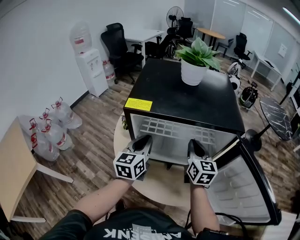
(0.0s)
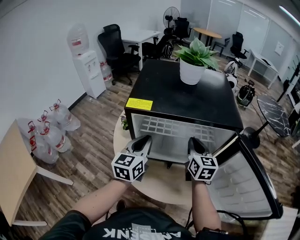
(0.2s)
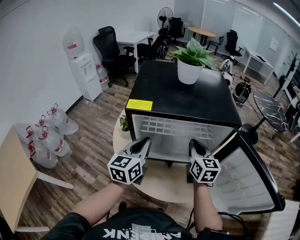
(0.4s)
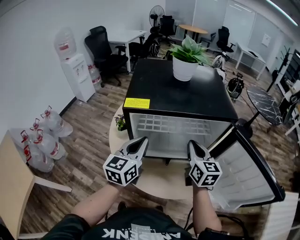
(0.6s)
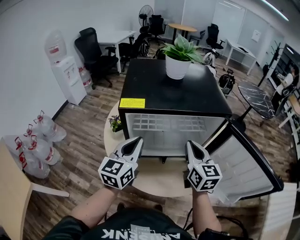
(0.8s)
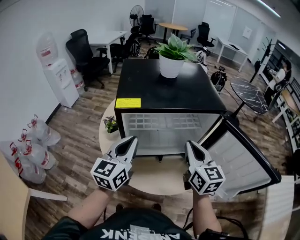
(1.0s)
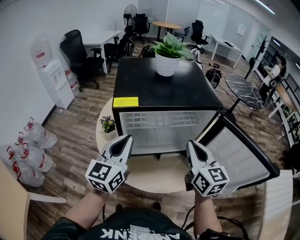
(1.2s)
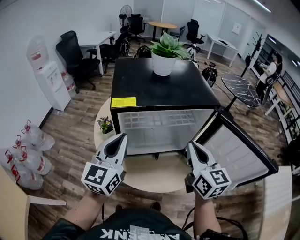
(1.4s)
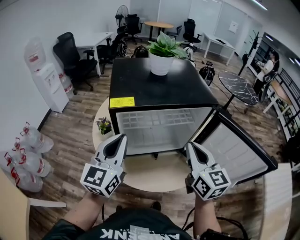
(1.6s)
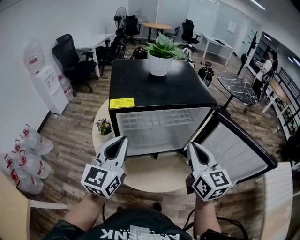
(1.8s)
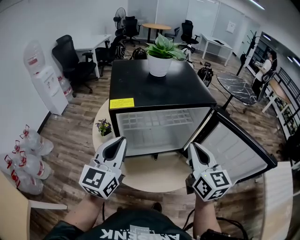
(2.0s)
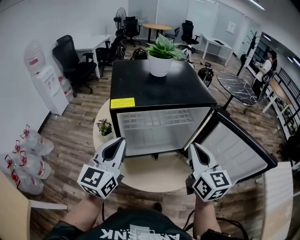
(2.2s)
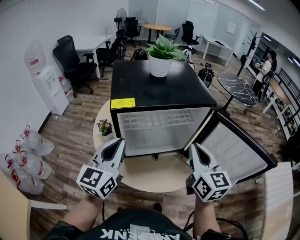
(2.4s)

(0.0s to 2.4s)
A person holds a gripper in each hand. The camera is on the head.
0.0s - 1.2s: The left gripper is displaced upward and backward by some 10 cm, and swivels some 20 degrees, while the right gripper is displaced backward and upward by approximately 15 cm.
1.2s - 2.4s: The grippers move only a little.

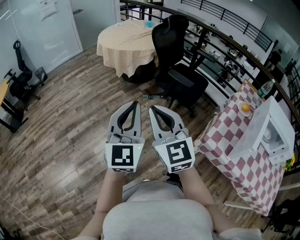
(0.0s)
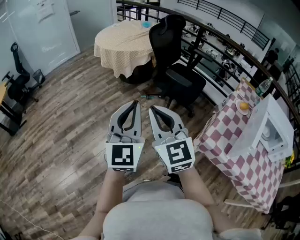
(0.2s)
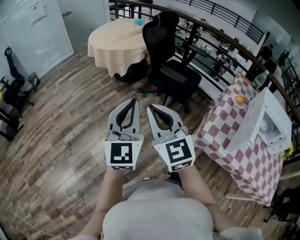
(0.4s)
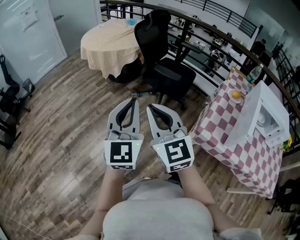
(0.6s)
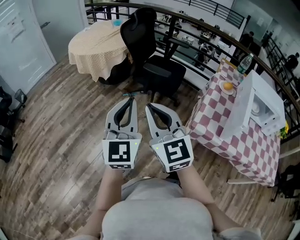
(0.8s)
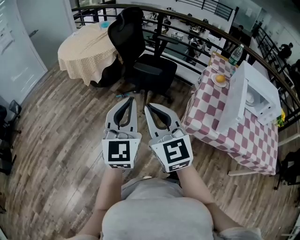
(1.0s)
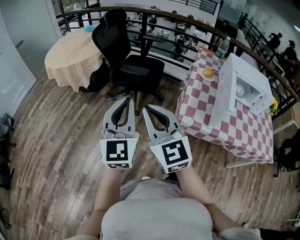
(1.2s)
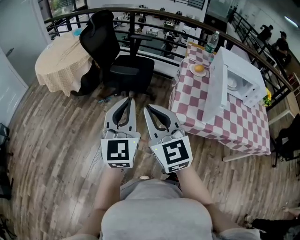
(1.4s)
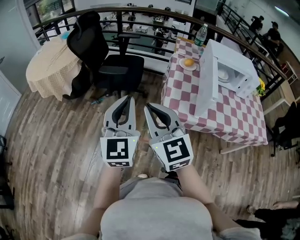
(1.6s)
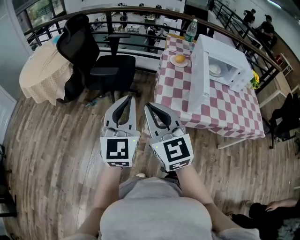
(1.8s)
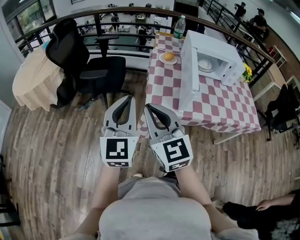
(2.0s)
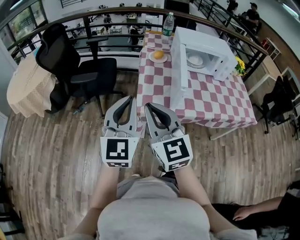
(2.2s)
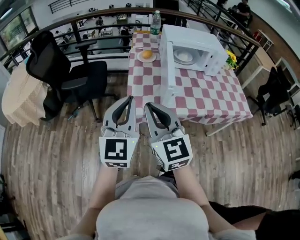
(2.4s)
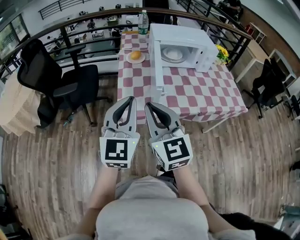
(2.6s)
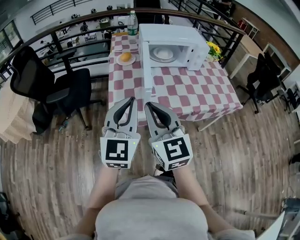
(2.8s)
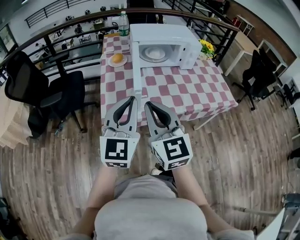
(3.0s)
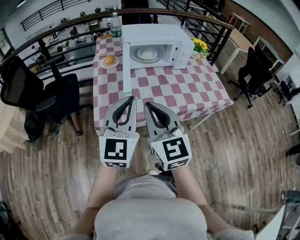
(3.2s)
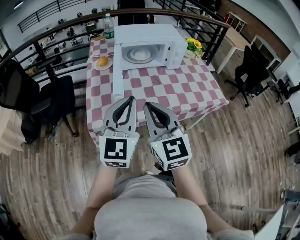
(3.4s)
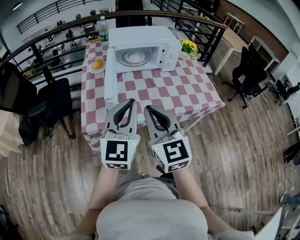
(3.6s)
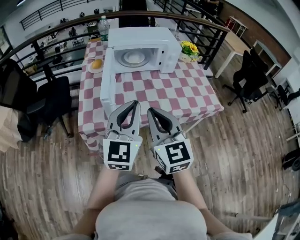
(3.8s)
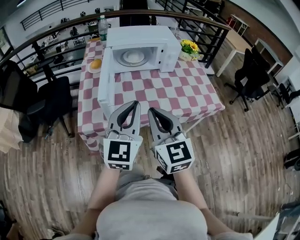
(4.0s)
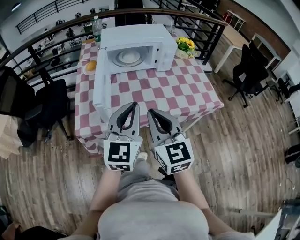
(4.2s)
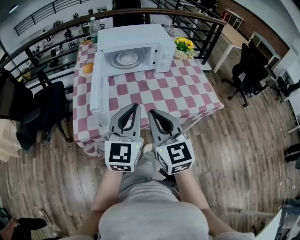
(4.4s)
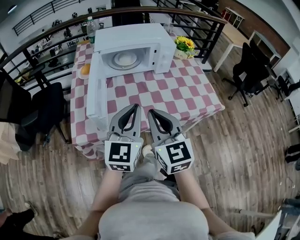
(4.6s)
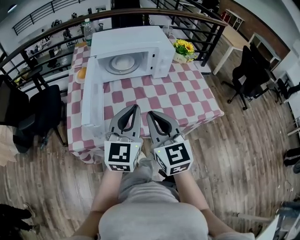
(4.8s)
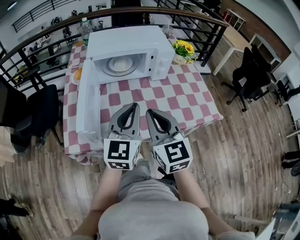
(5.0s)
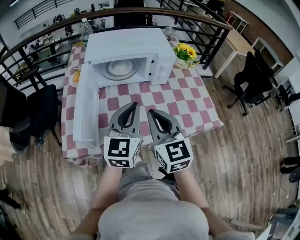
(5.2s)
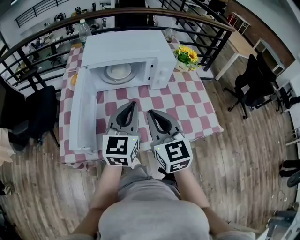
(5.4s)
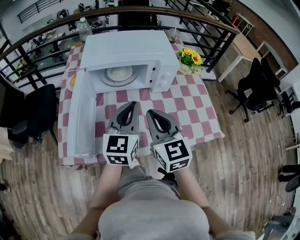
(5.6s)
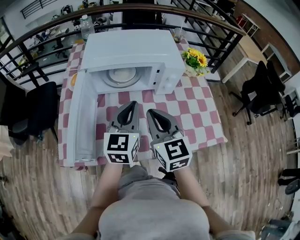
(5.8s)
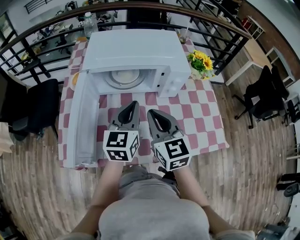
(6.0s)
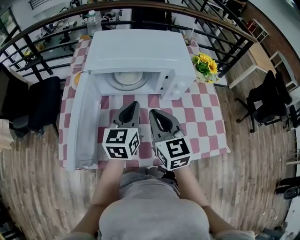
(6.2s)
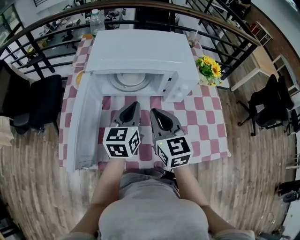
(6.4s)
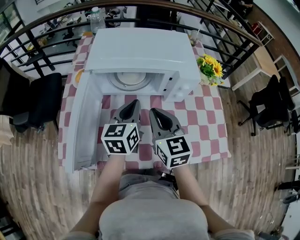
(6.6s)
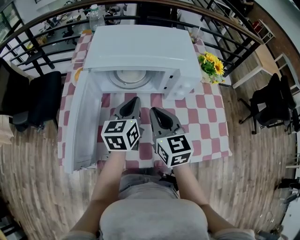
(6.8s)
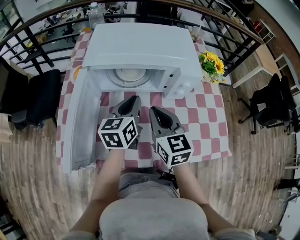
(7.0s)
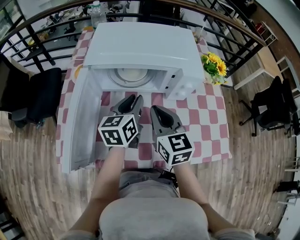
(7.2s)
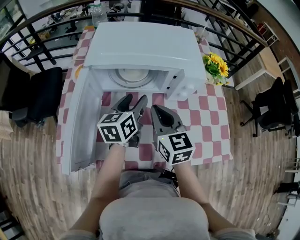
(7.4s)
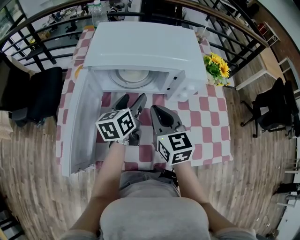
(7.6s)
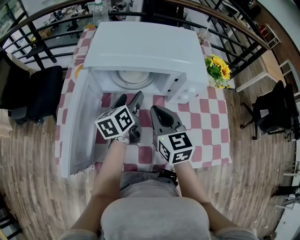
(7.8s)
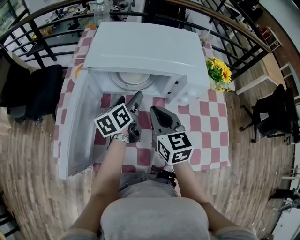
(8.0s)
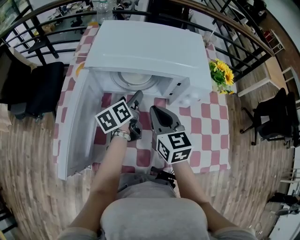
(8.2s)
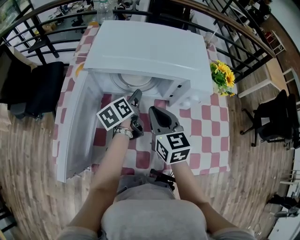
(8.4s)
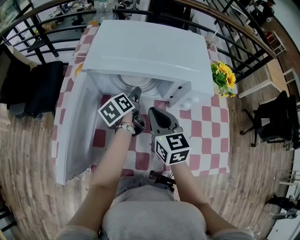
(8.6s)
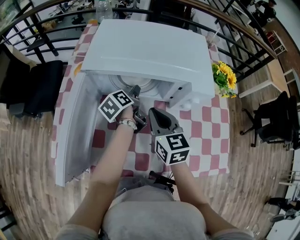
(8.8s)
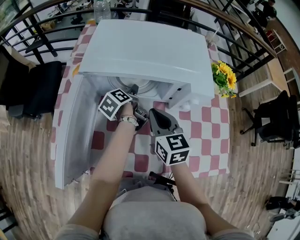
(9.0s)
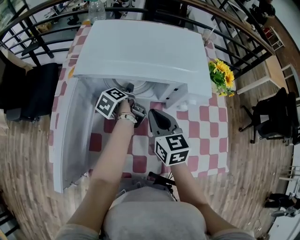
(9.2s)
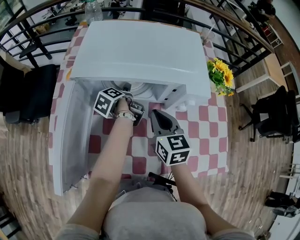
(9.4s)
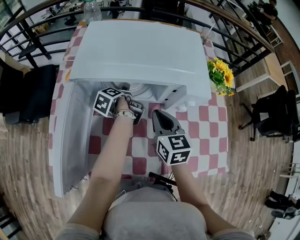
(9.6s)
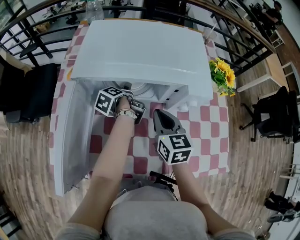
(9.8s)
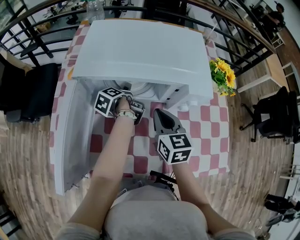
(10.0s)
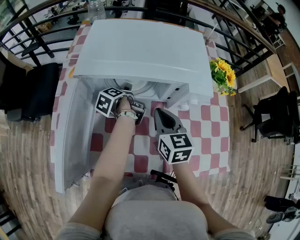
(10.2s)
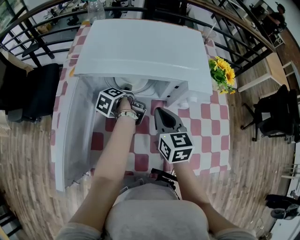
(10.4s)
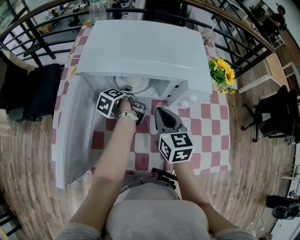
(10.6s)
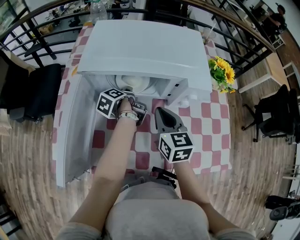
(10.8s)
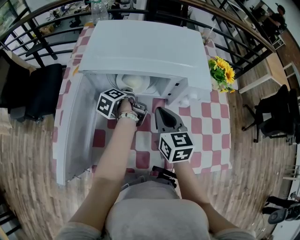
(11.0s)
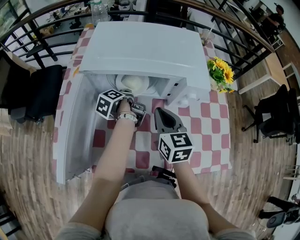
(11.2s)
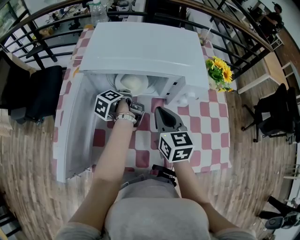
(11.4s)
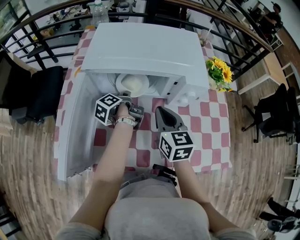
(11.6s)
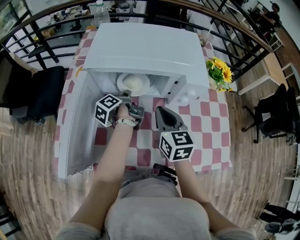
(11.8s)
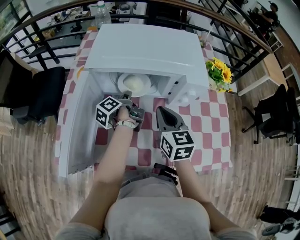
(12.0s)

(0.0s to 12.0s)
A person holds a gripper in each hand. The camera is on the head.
0.0s - 1.6s: The right gripper ends up some 20 cm from where it was, and turns by about 30 degrees. The left gripper changes place by roughly 20 cm, and rotates roughly 30 degrees.
1.6s - 3.0s: The right gripper moves some 30 cm, and turns by approximately 30 degrees. Meanwhile the left gripper moves approximately 30 cm, and changes its angle by approximately 30 degrees.
3.0s - 4.4s: The grippers both shift to the right by about 20 cm.
4.4s - 6.0s: The grippers both shift forward by some 25 cm.
6.0s - 7.6s: The grippers both shift forward and downward by about 10 cm. The left gripper rotates about 30 degrees, and opens up.
7.6s - 9.0s: The right gripper ends up approximately 5 cm from where it was. Meanwhile the left gripper travels downward and forward by about 15 cm, and twists about 40 degrees counterclockwise, seen from behind.
9.0s - 10.4s: The grippers stay close to where they were, moving slightly.
10.4s - 12.0s: The left gripper shifts by roughly 5 cm, and closes.

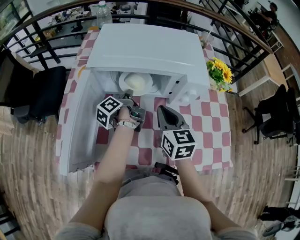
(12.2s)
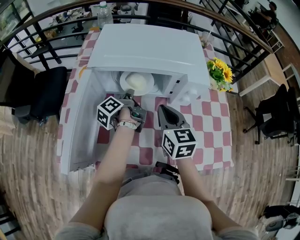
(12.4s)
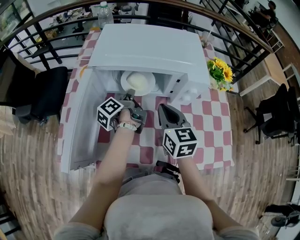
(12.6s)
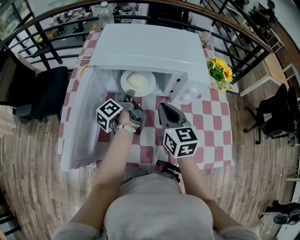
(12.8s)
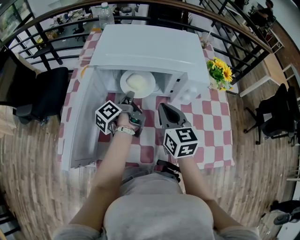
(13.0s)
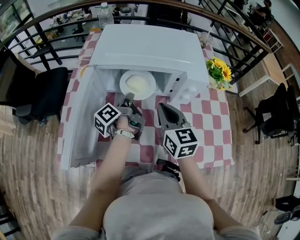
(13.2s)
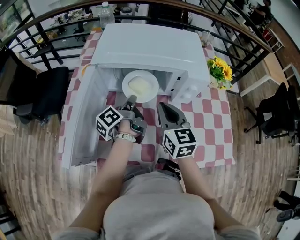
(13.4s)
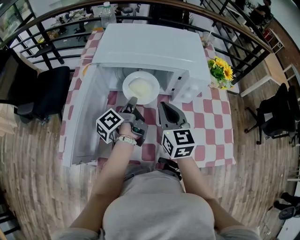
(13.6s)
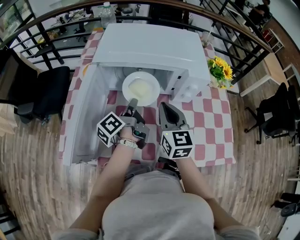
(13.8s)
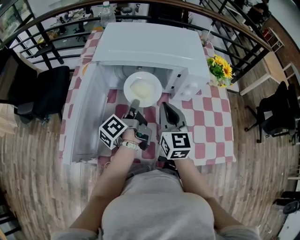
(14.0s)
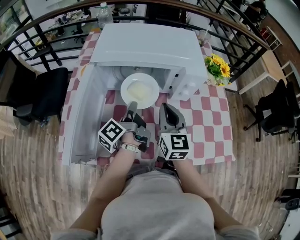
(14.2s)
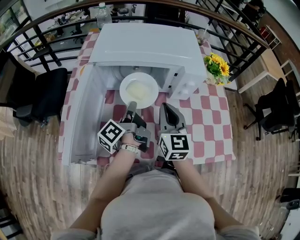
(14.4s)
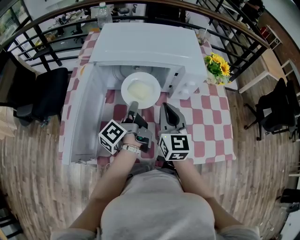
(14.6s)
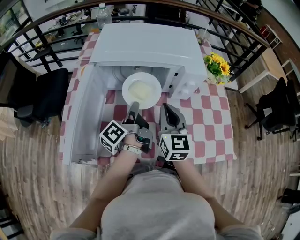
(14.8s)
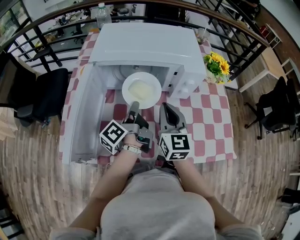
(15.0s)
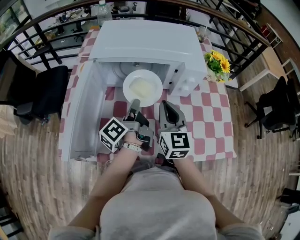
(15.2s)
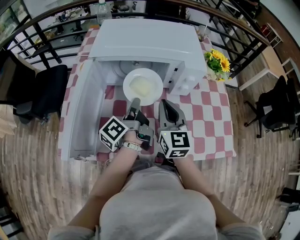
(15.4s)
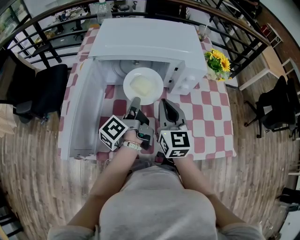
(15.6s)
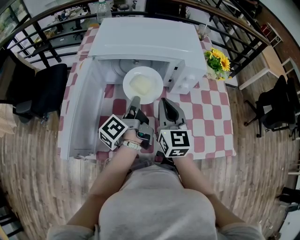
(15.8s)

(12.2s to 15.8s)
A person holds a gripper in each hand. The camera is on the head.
12.2s - 14.0s: The left gripper heads backward, covering roughly 10 cm.
14.0s - 15.8s: There are only small adjustments of the grippers.

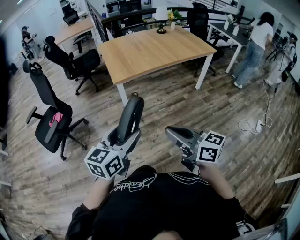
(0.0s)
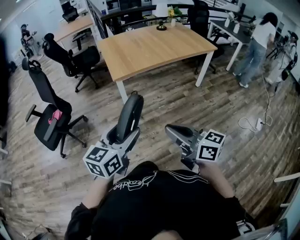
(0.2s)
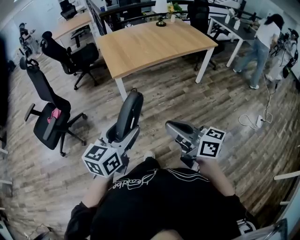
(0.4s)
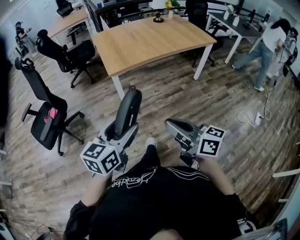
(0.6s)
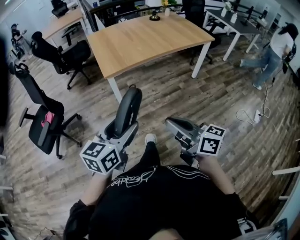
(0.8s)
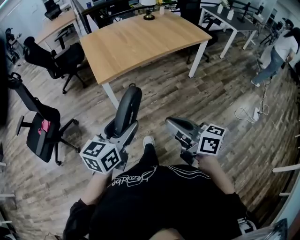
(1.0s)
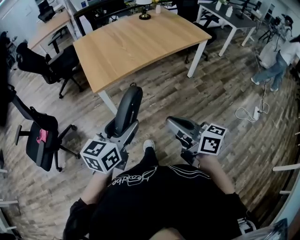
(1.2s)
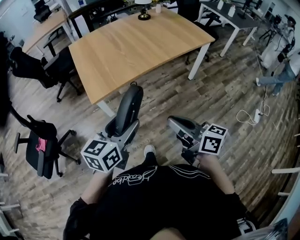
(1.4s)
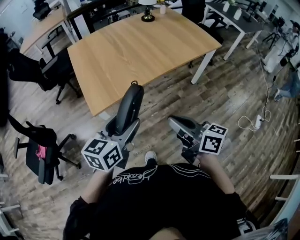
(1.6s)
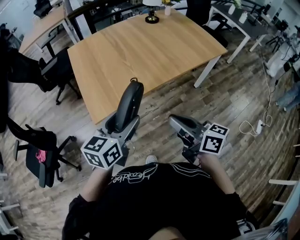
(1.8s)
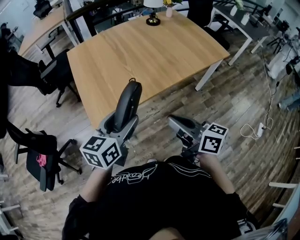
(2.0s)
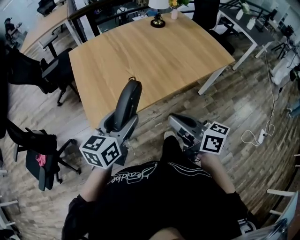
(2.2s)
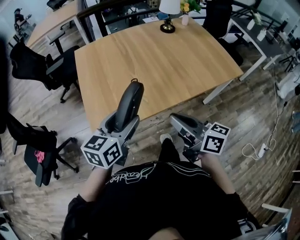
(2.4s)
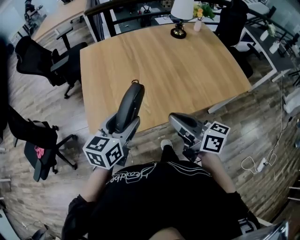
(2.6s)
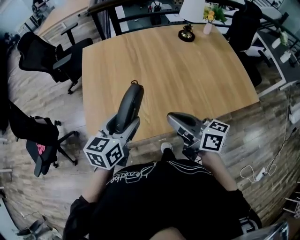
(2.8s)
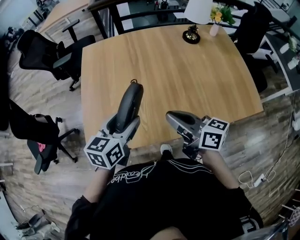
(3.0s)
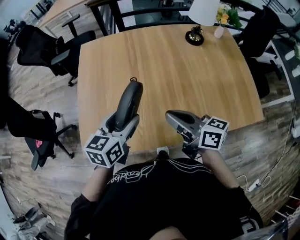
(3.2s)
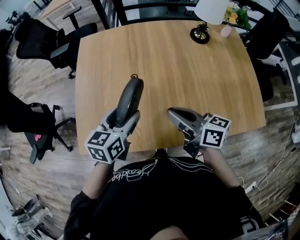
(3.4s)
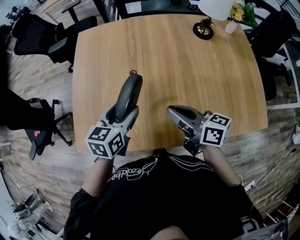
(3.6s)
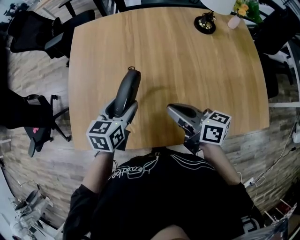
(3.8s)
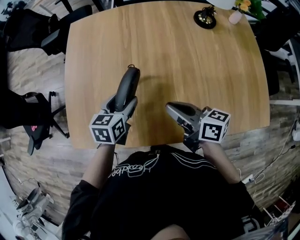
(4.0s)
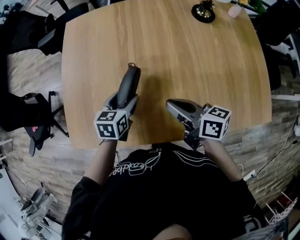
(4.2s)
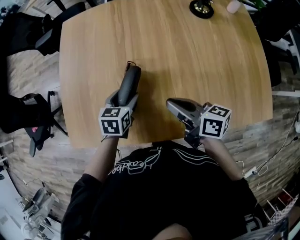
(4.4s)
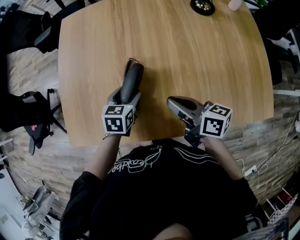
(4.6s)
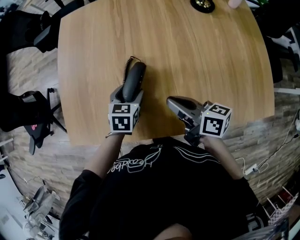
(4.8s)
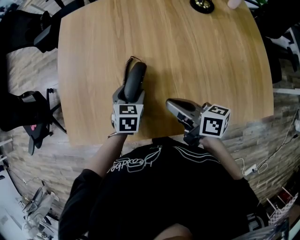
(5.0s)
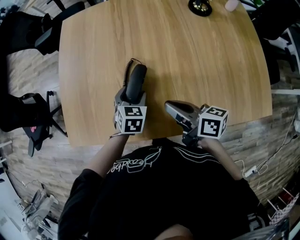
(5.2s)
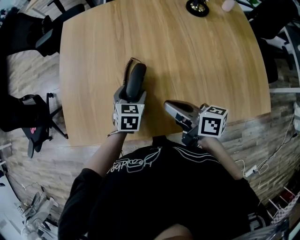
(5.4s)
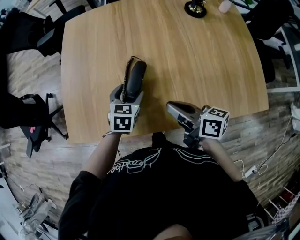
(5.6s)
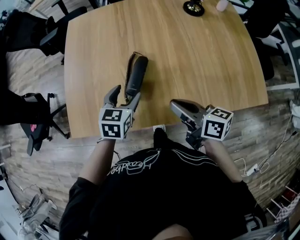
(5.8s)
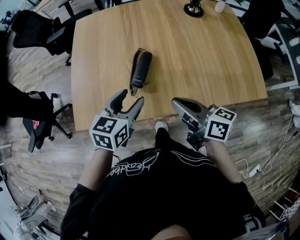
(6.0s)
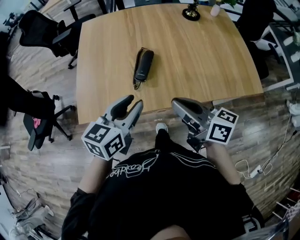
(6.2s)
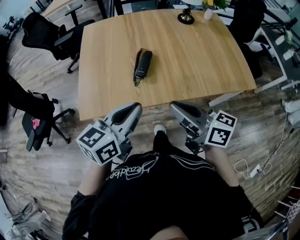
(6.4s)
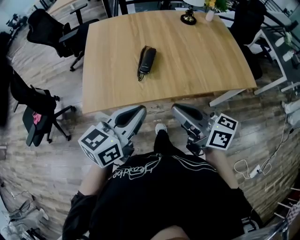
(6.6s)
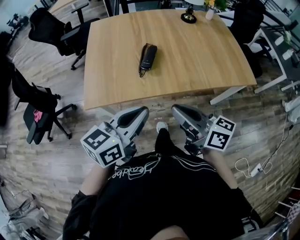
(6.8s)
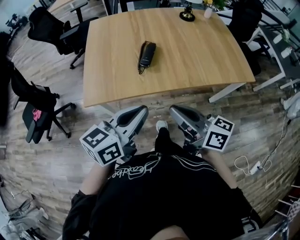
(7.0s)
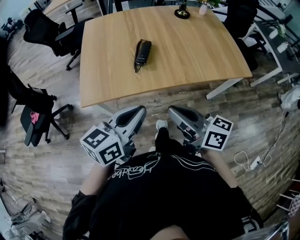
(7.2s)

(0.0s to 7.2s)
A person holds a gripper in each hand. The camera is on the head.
0.0s - 1.4s: The grippers both shift forward by approximately 30 cm.
1.4s - 2.8s: Both grippers travel together forward, roughly 40 cm. The right gripper turns by approximately 20 degrees. Meanwhile the left gripper swivels some 20 degrees.
2.8s - 4.4s: Both grippers travel together downward, forward and to the right, about 25 cm. The left gripper changes its angle by some 30 degrees.
4.4s - 5.8s: The right gripper heads backward, covering some 10 cm, while the left gripper goes about 10 cm upward and backward.
5.8s - 7.2s: Both grippers travel together backward and upward, roughly 30 cm. The left gripper turns by about 40 degrees, and closes its fingers.
